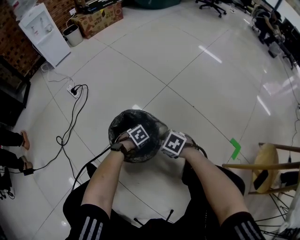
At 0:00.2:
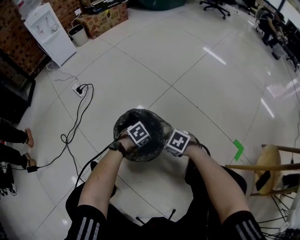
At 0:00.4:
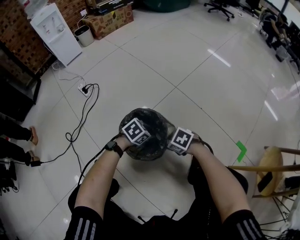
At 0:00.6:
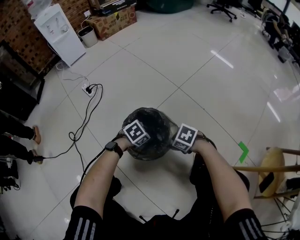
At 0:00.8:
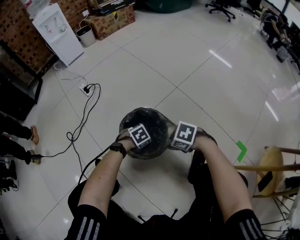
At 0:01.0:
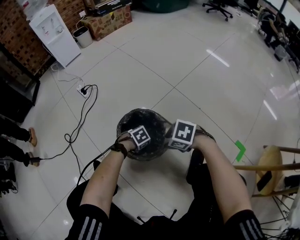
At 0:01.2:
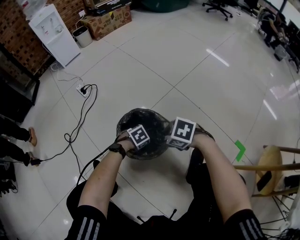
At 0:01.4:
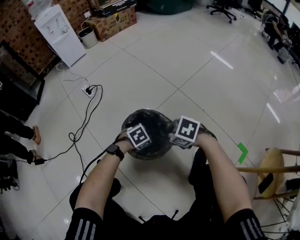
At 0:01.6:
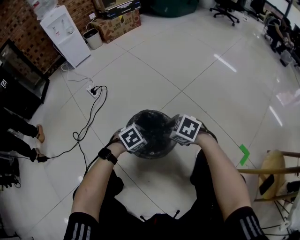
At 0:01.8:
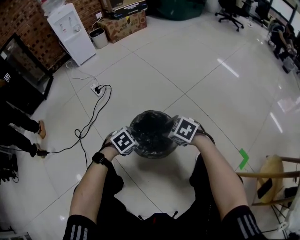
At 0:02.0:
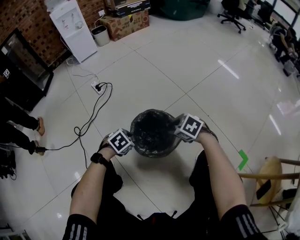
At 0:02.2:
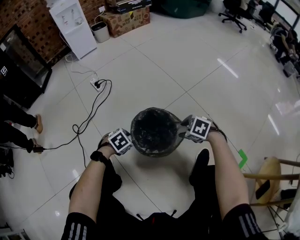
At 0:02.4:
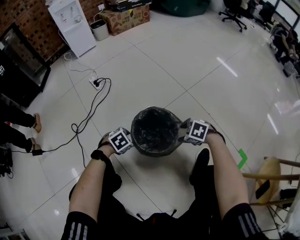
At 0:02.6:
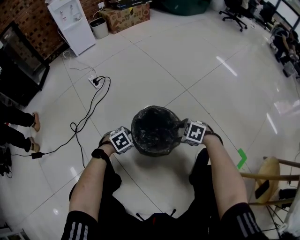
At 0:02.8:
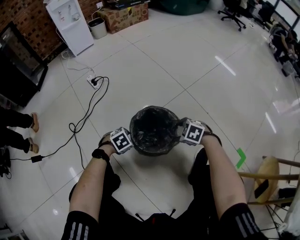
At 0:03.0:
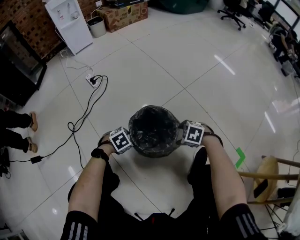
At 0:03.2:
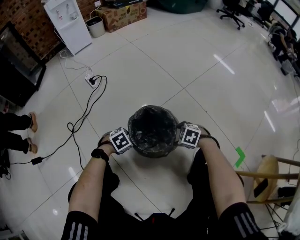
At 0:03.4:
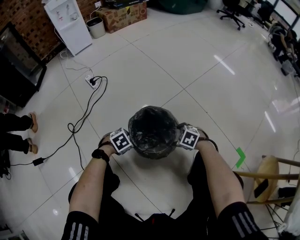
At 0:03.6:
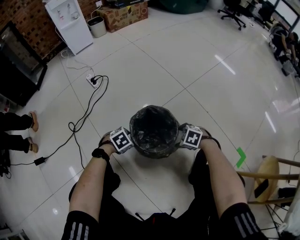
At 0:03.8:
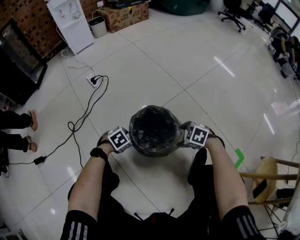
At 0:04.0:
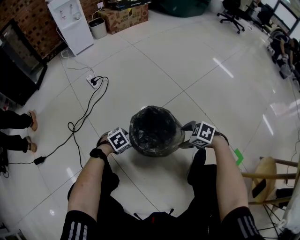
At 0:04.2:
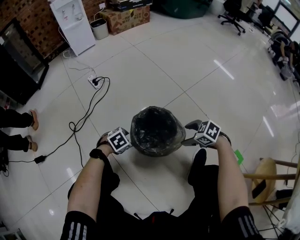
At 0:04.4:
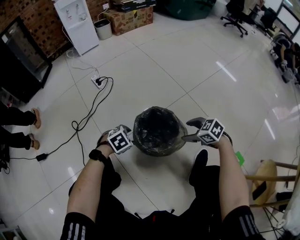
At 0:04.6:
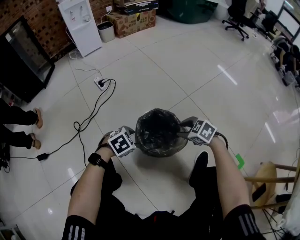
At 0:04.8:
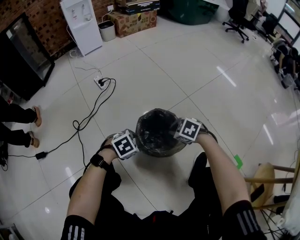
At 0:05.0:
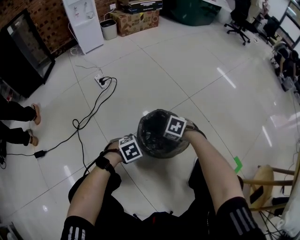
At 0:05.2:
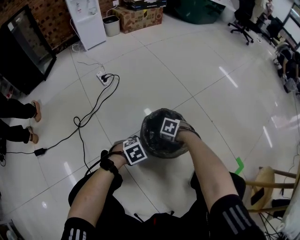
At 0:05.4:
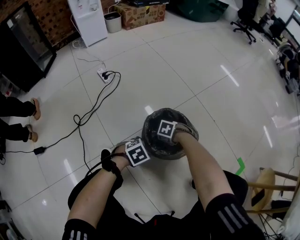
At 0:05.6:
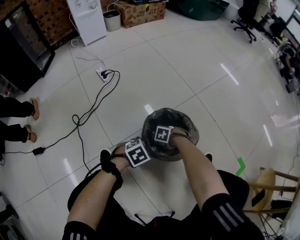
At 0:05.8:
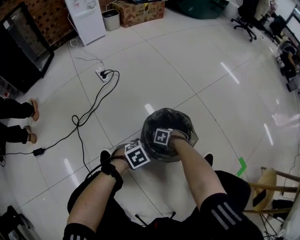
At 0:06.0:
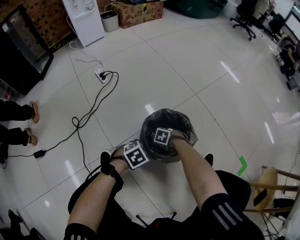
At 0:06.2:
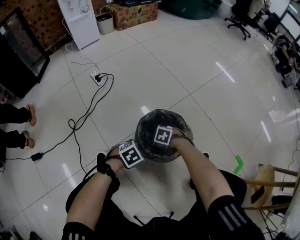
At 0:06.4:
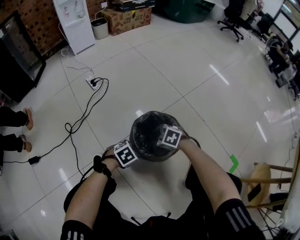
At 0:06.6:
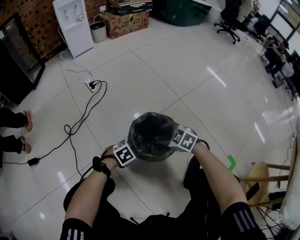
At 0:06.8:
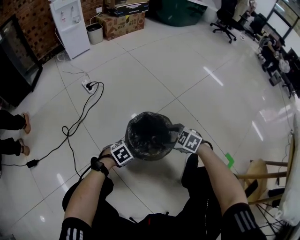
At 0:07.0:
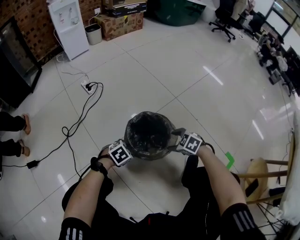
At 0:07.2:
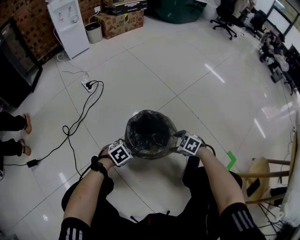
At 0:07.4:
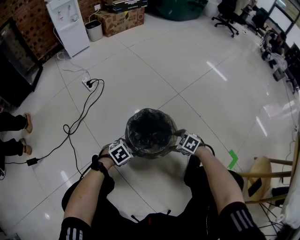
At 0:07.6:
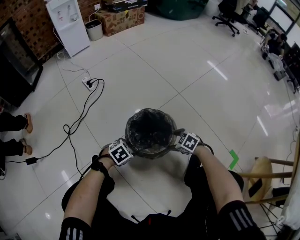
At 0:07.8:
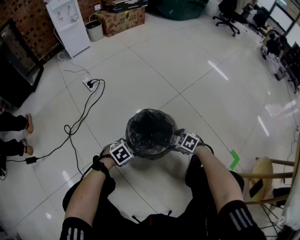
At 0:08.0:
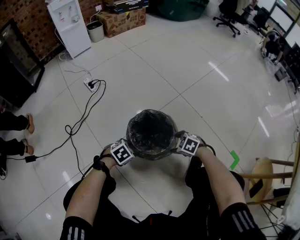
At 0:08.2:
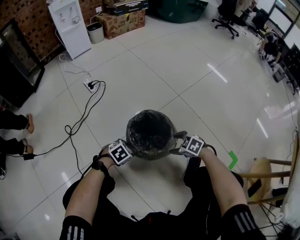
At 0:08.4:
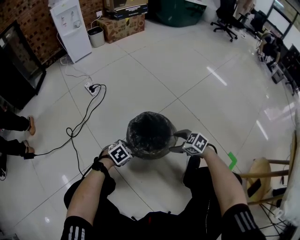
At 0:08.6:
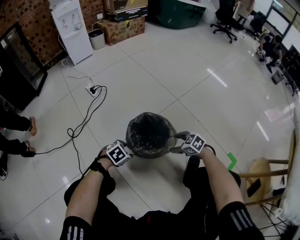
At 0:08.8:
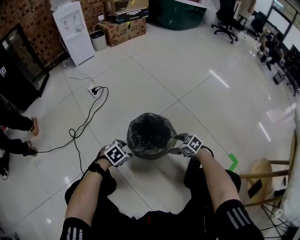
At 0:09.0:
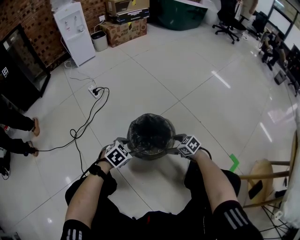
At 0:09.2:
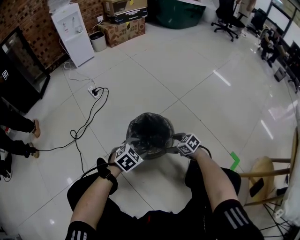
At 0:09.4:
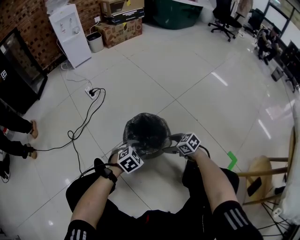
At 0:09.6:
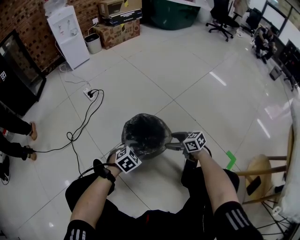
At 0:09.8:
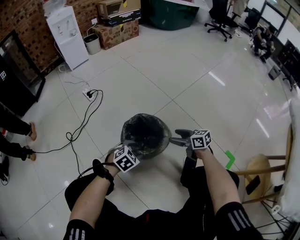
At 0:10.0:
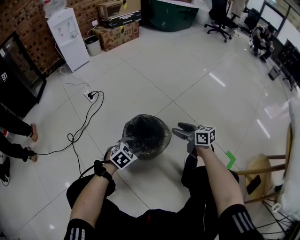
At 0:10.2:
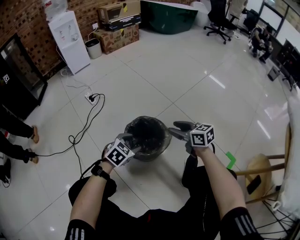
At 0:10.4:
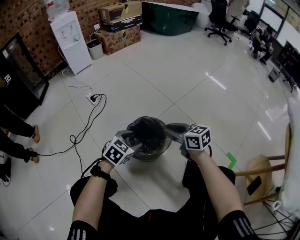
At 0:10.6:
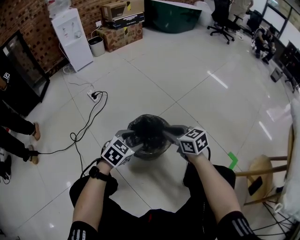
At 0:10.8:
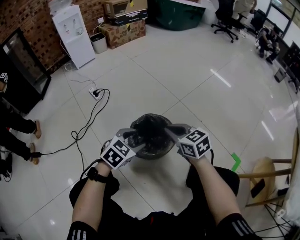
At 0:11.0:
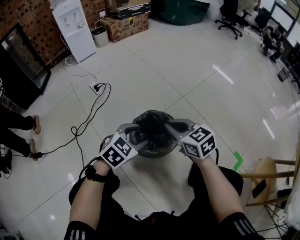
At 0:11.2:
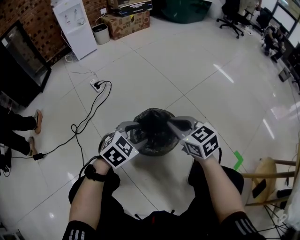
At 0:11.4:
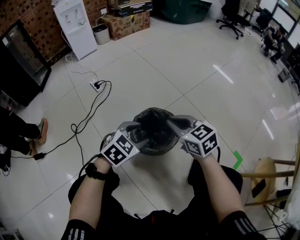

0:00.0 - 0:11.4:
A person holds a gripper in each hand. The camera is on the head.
0:00.0 - 0:01.4: The right gripper is displaced upward by about 10 cm. The left gripper moves up and down over some 10 cm, changing direction 2 times.
0:01.4 - 0:02.8: The left gripper moves approximately 10 cm upward and comes back. Meanwhile the right gripper is displaced downward by about 10 cm, and opens its fingers.
0:02.8 - 0:04.2: The right gripper changes place by some 5 cm.
0:04.2 - 0:05.6: The right gripper moves downward, about 15 cm, turns by some 30 degrees, and closes its fingers, while the left gripper travels upward and back again, approximately 10 cm each way.
0:05.6 - 0:07.2: The right gripper moves about 15 cm, swivels about 30 degrees, and opens its fingers.
0:07.2 - 0:08.6: The grippers move only a little.
0:08.6 - 0:10.0: The right gripper moves upward, approximately 10 cm, and tips its fingers upward by roughly 30 degrees. Meanwhile the left gripper changes place by approximately 10 cm.
0:10.0 - 0:11.4: The left gripper shifts some 10 cm upward. The right gripper is displaced to the left and upward by approximately 15 cm, changes its angle by approximately 30 degrees, and closes its fingers.

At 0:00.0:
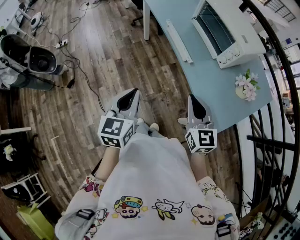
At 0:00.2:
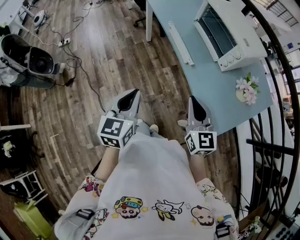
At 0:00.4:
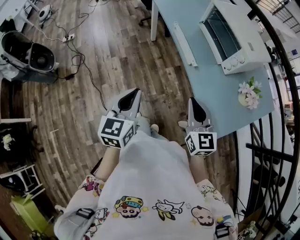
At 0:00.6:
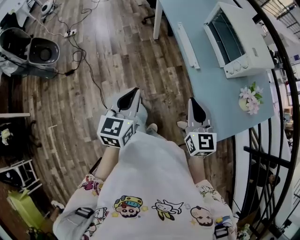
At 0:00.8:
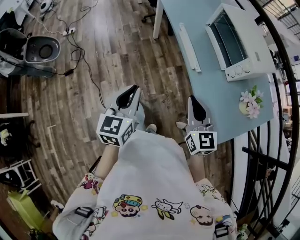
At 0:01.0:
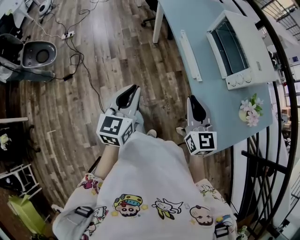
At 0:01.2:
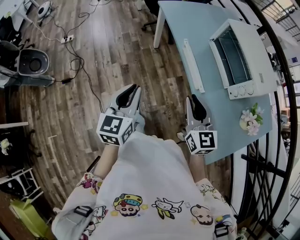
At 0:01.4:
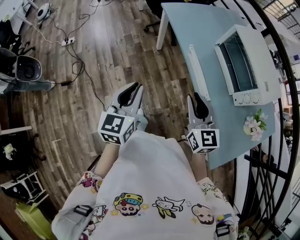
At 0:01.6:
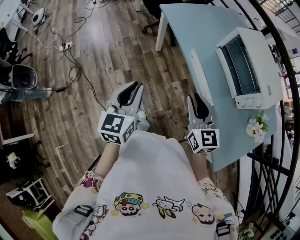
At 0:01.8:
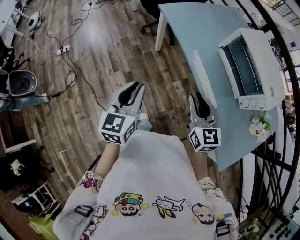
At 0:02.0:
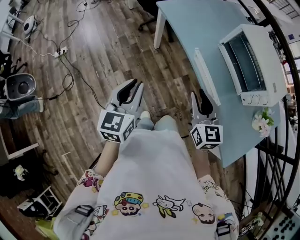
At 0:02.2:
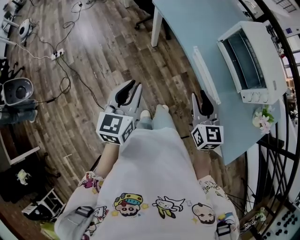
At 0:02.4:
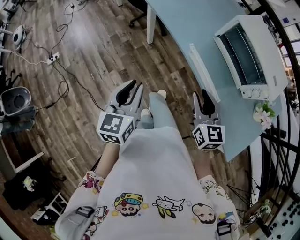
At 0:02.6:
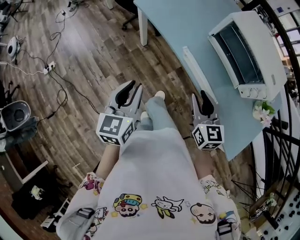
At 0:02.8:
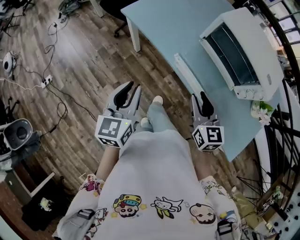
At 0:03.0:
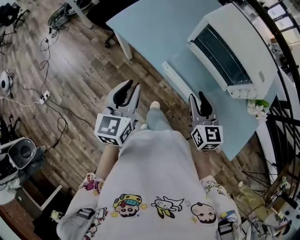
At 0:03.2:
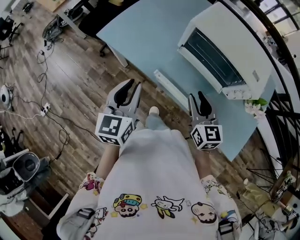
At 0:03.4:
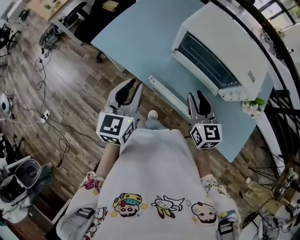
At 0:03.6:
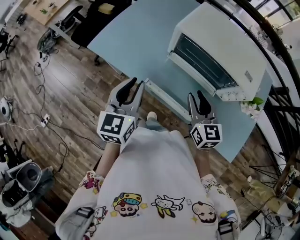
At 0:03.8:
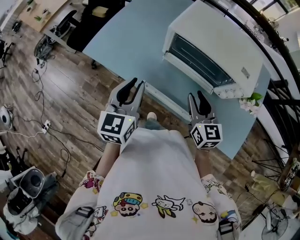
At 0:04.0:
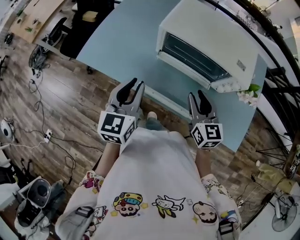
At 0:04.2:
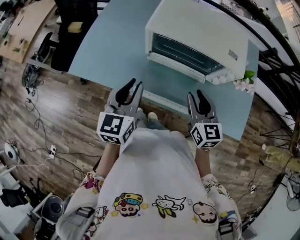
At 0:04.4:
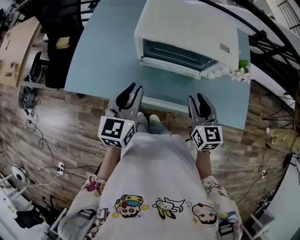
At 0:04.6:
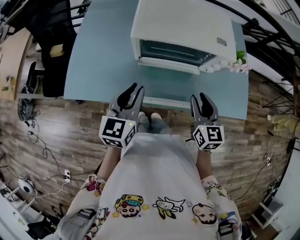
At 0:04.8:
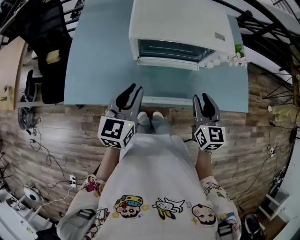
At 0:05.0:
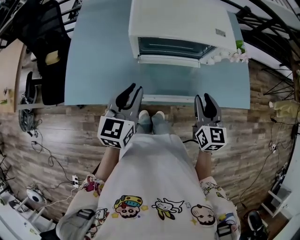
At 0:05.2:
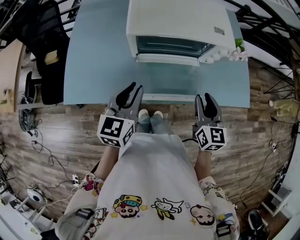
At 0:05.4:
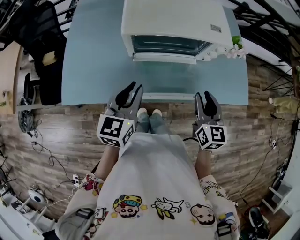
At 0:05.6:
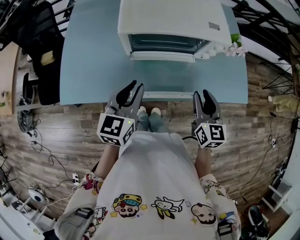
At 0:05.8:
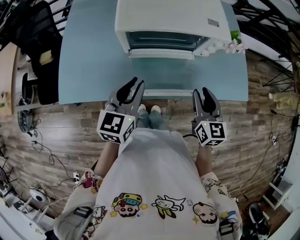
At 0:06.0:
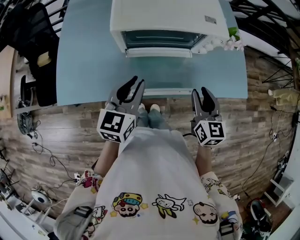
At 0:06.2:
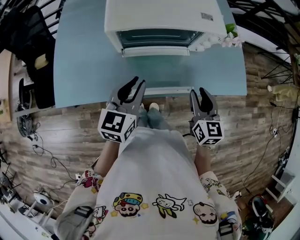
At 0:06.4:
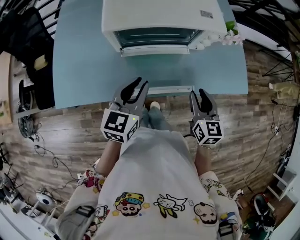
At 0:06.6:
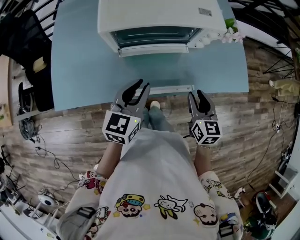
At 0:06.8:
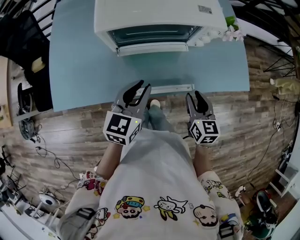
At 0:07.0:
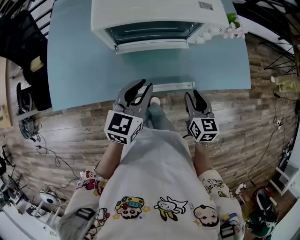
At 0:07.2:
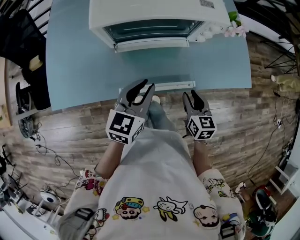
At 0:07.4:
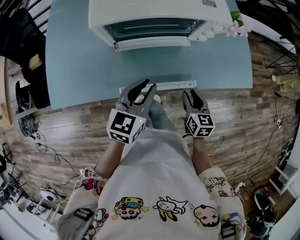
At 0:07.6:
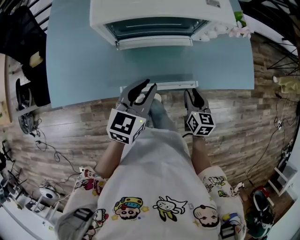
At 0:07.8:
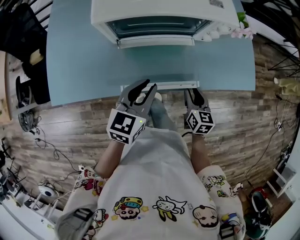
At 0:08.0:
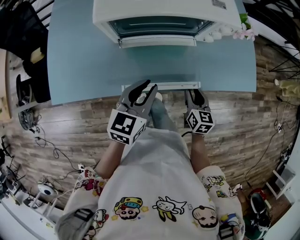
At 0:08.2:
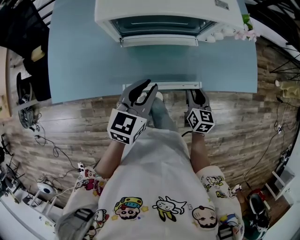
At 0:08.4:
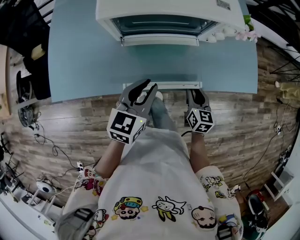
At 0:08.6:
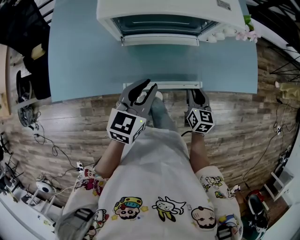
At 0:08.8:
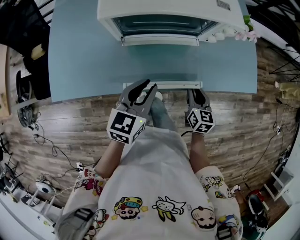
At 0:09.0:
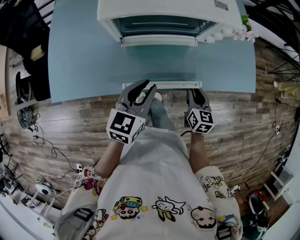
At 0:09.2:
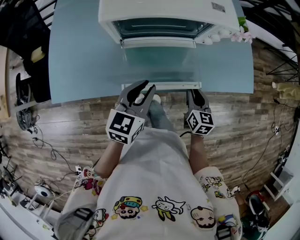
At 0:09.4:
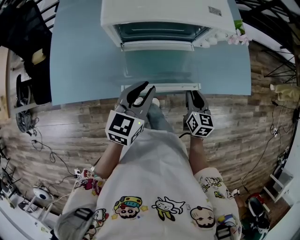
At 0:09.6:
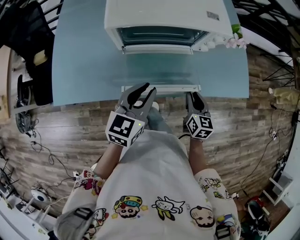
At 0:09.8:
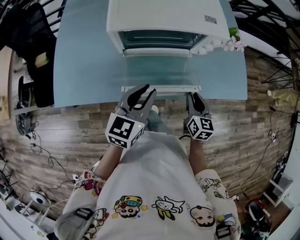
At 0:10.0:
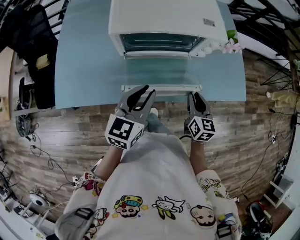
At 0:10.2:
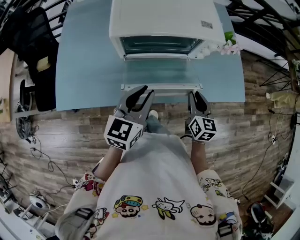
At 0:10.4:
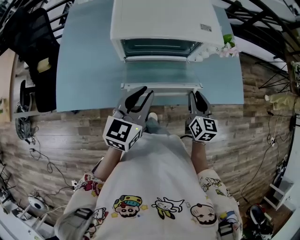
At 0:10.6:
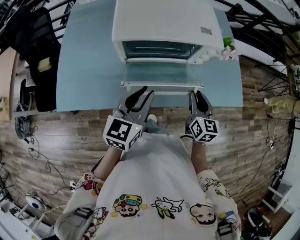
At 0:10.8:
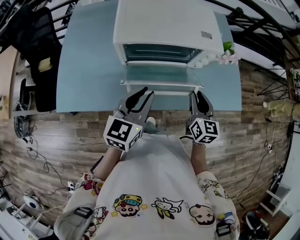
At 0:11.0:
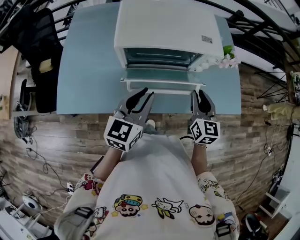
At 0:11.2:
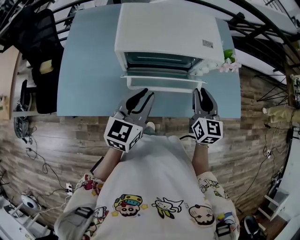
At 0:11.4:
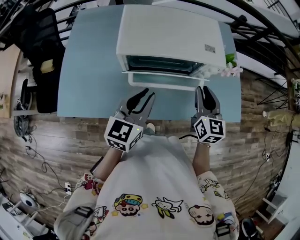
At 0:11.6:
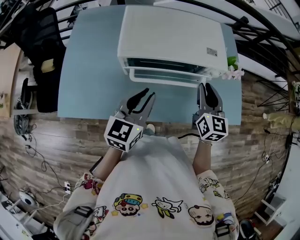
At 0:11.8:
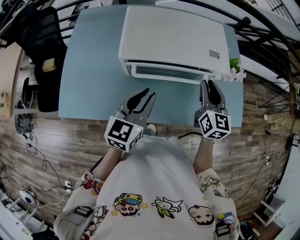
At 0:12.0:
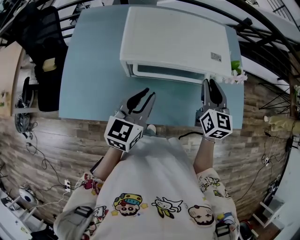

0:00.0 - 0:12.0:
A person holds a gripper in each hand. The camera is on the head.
0:00.0 - 0:01.6: Both grippers travel together forward and to the left, about 25 cm. The right gripper opens.
0:01.6 - 0:03.0: The left gripper shifts by approximately 25 cm, and rotates about 20 degrees. The right gripper ends up roughly 15 cm from where it was, and changes its angle by about 30 degrees.
0:03.0 - 0:04.4: The right gripper shifts by about 10 cm, and turns by approximately 30 degrees, while the left gripper ends up approximately 20 cm from where it was, and swivels some 30 degrees.
0:04.4 - 0:06.0: The right gripper moves some 5 cm.
0:06.0 - 0:07.6: The left gripper goes about 10 cm downward and to the right; the right gripper heads downward, covering approximately 15 cm.
0:07.6 - 0:09.0: The grippers stay close to where they were, moving slightly.
0:09.0 - 0:10.4: Both grippers travel together upward, approximately 10 cm.
0:10.4 - 0:12.0: The left gripper heads forward, covering about 10 cm. The right gripper is displaced forward and upward by approximately 20 cm.
